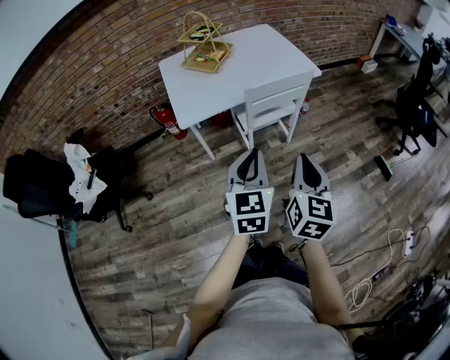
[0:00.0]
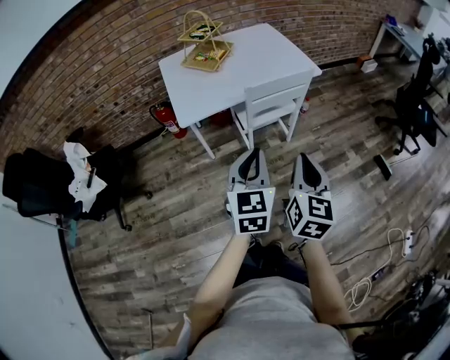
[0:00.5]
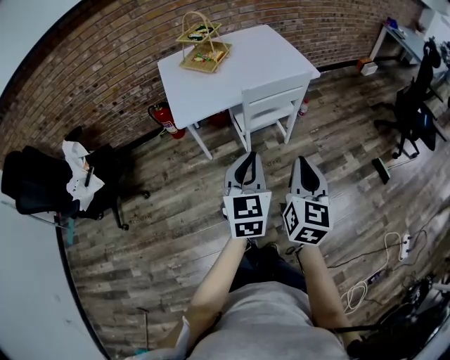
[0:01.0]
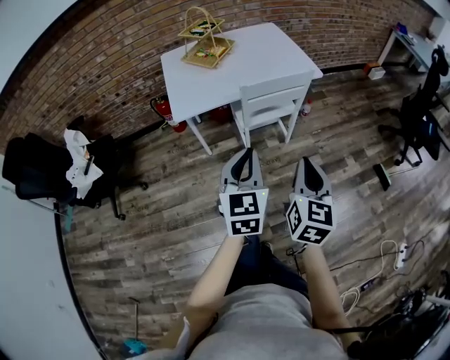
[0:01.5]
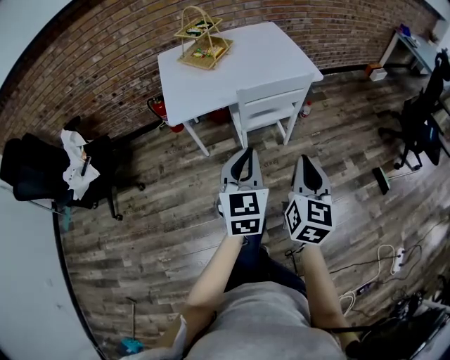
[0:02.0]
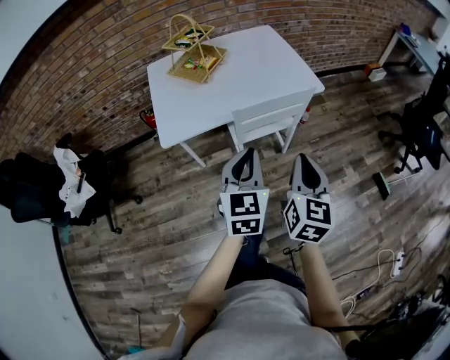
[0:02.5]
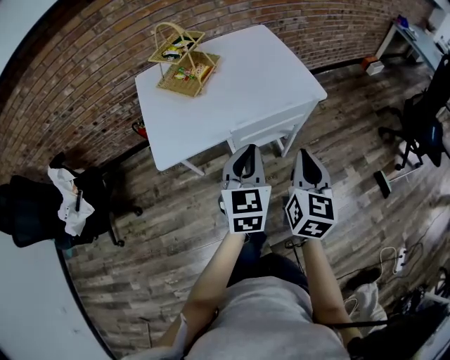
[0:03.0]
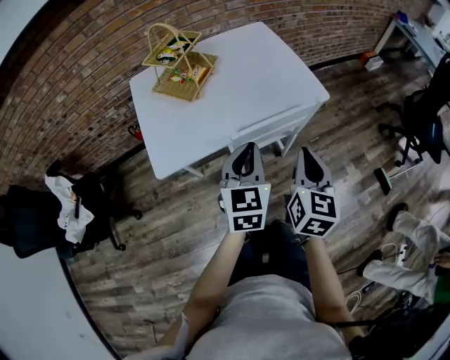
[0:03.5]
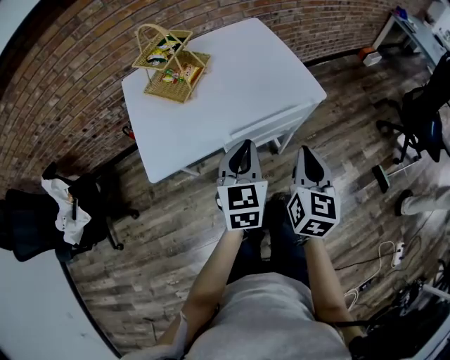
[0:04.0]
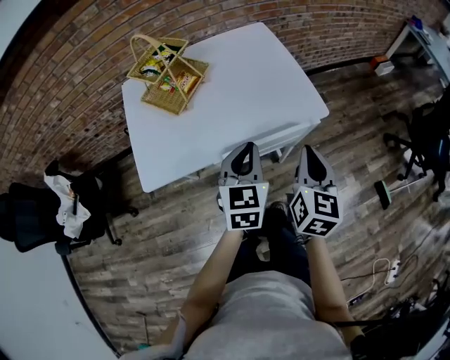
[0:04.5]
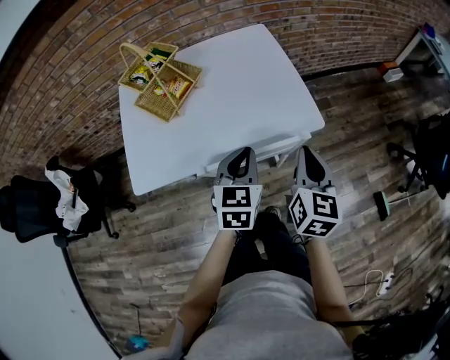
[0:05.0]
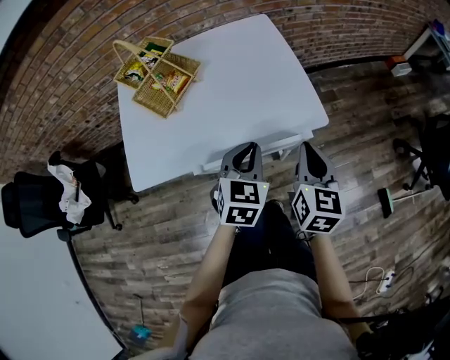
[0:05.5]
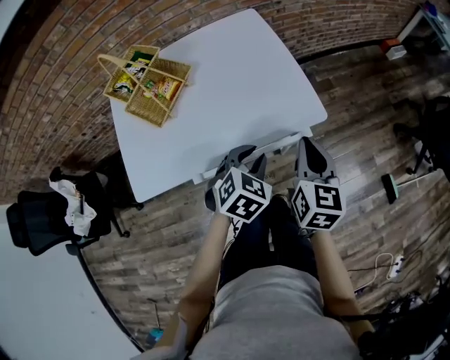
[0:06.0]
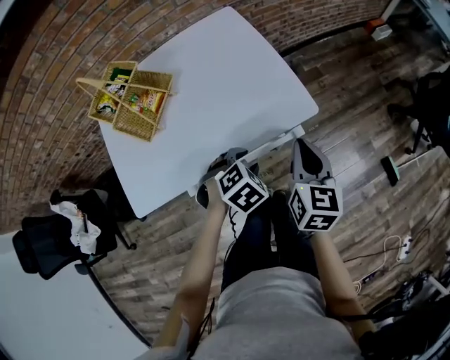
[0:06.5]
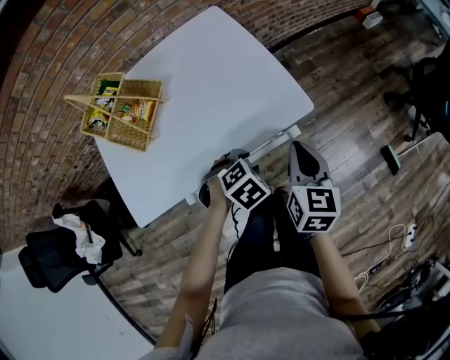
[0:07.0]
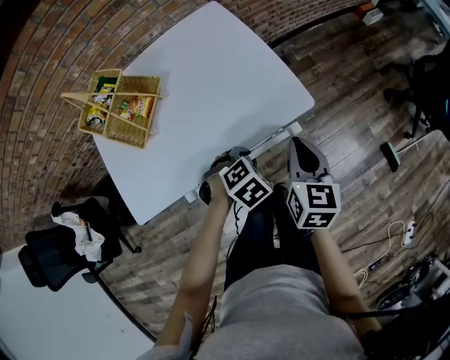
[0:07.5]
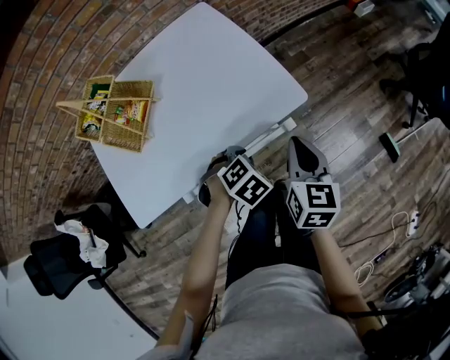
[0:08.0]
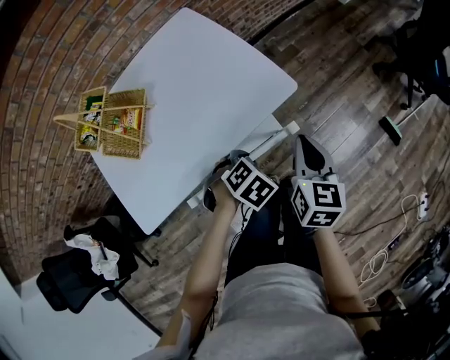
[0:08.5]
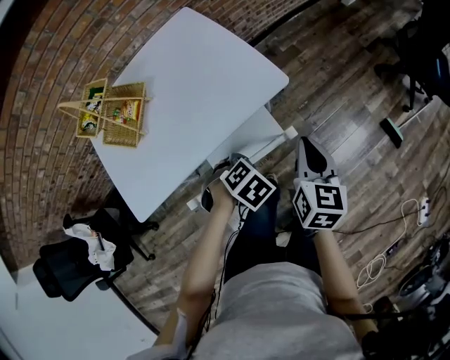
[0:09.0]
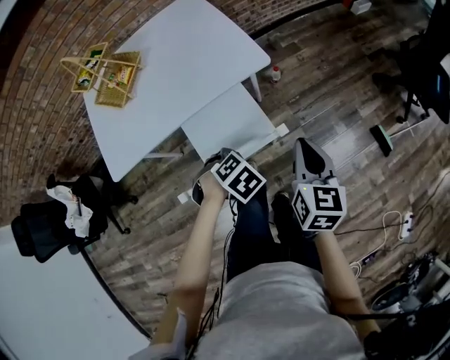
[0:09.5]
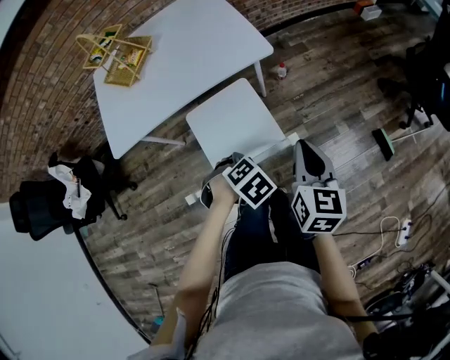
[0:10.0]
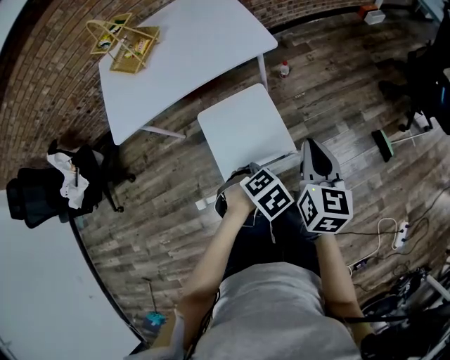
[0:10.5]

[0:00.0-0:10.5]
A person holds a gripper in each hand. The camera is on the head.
0:00.0 to 0:02.0: The left gripper moves about 5 cm. The right gripper shifts approximately 5 cm to the right.
0:02.0 to 0:04.0: Both grippers travel together forward, about 30 cm.
0:04.0 to 0:06.5: The right gripper is displaced forward and to the right by roughly 20 cm. Meanwhile the left gripper is displaced downward, forward and to the right by approximately 25 cm, angles its fingers downward, by some 50 degrees, and opens its fingers.
0:06.5 to 0:08.5: The left gripper closes its fingers. The right gripper shifts by roughly 5 cm.
0:08.5 to 0:10.5: The right gripper changes place by some 25 cm; the left gripper shifts by about 35 cm.

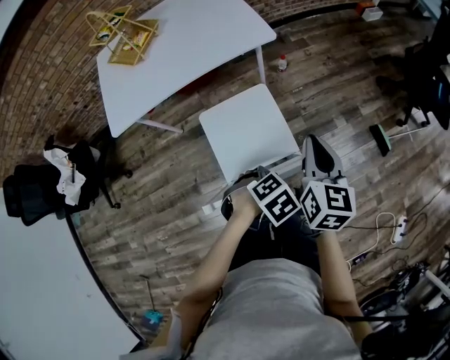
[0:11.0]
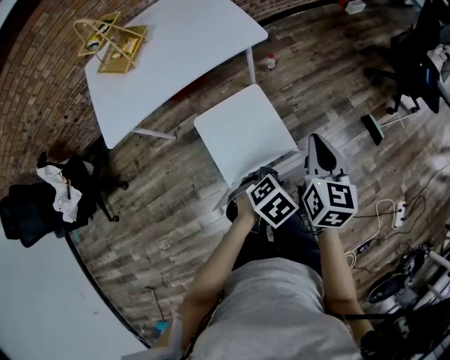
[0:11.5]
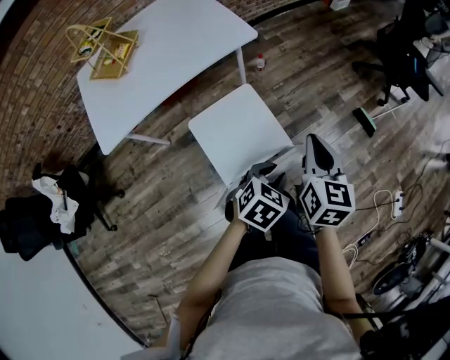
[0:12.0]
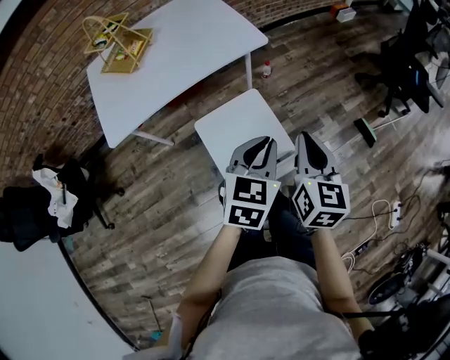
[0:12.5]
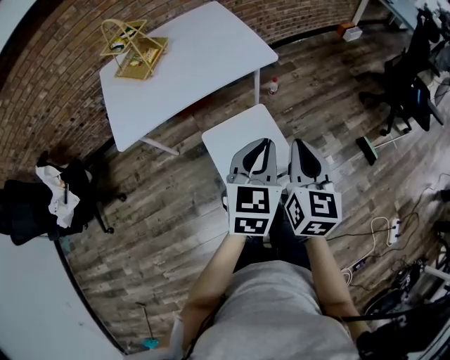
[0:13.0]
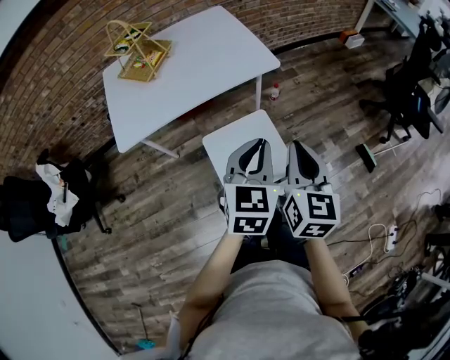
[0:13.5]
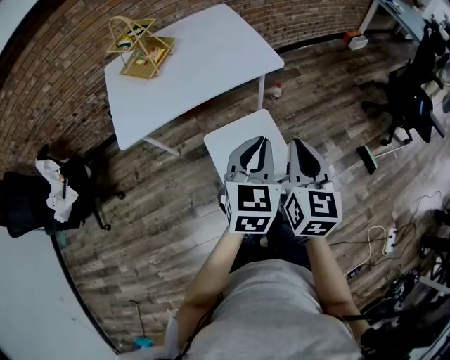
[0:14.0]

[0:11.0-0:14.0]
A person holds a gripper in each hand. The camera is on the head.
0:11.0 to 0:12.5: The left gripper is displaced upward by about 15 cm, and tilts its fingers roughly 50 degrees upward, while the right gripper changes place by roughly 10 cm.
0:12.5 to 0:14.0: The grippers both shift to the left by some 5 cm.

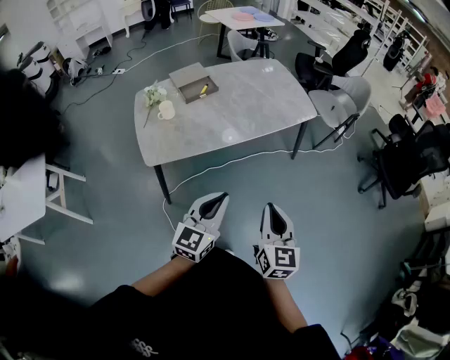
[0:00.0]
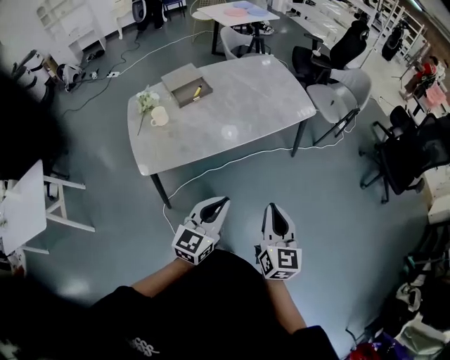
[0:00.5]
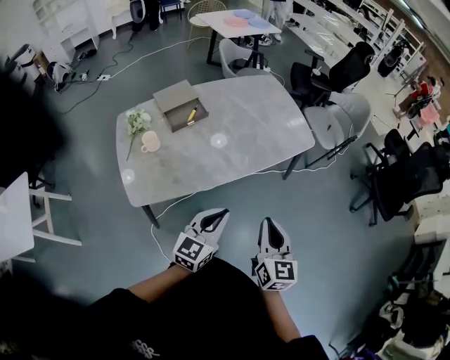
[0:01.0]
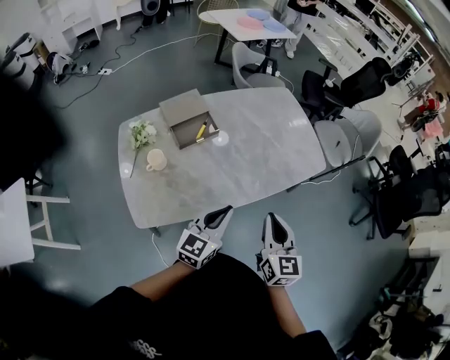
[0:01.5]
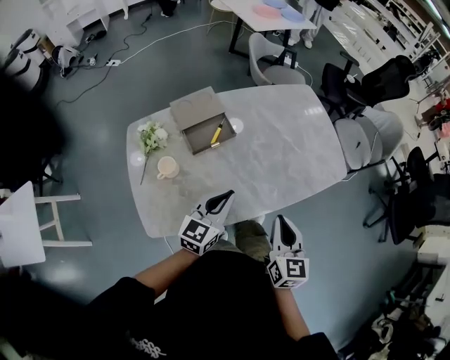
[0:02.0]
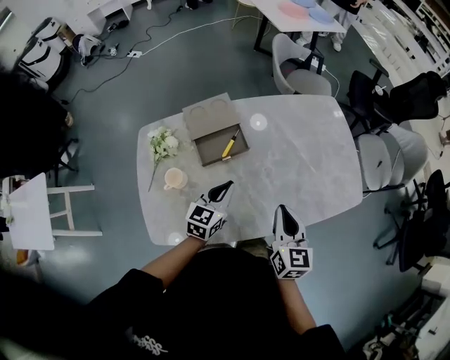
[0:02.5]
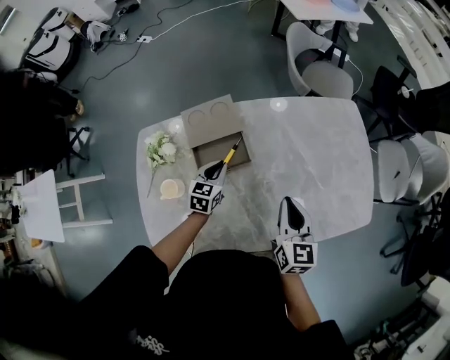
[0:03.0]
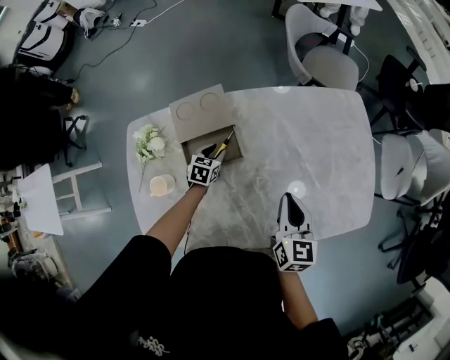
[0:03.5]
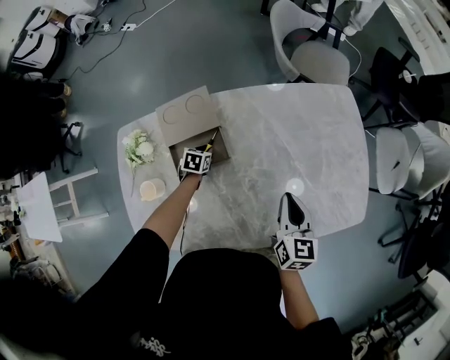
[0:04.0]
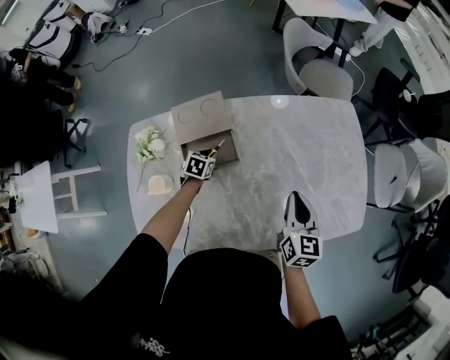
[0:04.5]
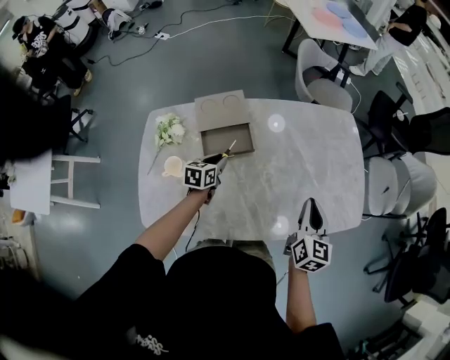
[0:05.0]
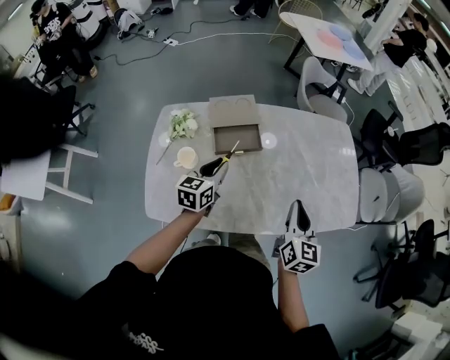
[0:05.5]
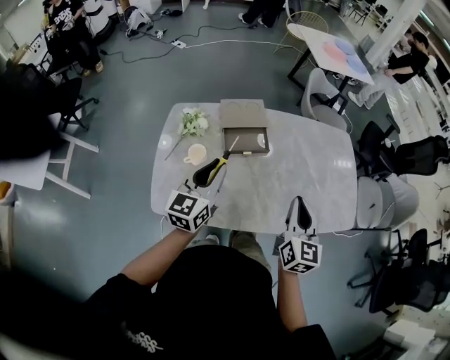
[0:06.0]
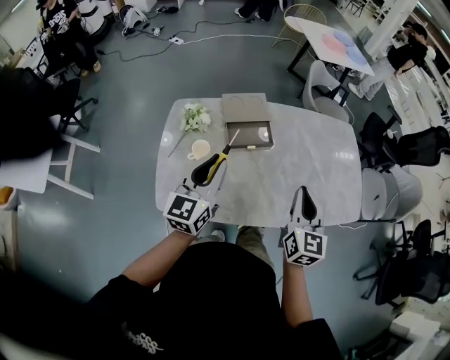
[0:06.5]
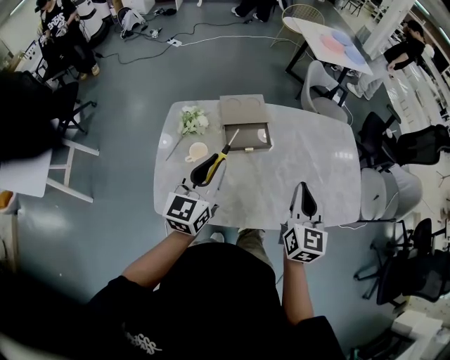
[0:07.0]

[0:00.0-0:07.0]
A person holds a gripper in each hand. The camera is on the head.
0:00.0 to 0:02.0: The pair of grippers is taken forward and to the left, some 50 cm.
0:02.0 to 0:03.5: The right gripper heads forward, covering about 35 cm. The left gripper travels forward and downward by about 50 cm, tilts its fingers about 40 degrees downward, and opens.
0:03.5 to 0:05.0: The right gripper moves backward, upward and to the right, some 10 cm. The left gripper moves upward and backward, approximately 15 cm, and turns by roughly 20 degrees.
0:05.0 to 0:07.0: The left gripper moves upward and backward, approximately 35 cm, and points its fingers some 40 degrees further upward; the right gripper goes approximately 20 cm to the left, backward and upward.

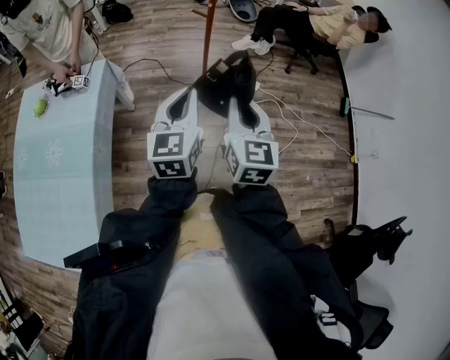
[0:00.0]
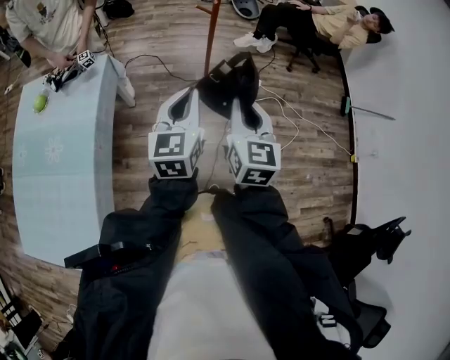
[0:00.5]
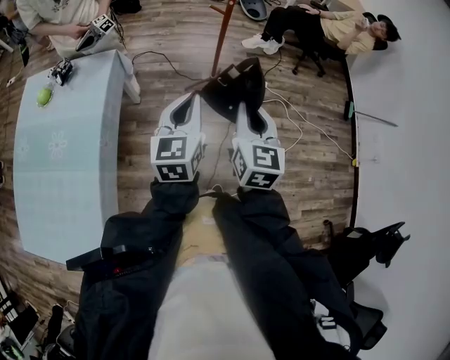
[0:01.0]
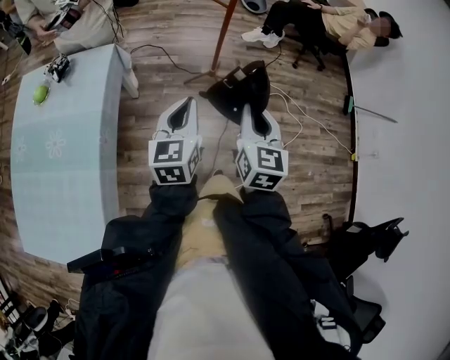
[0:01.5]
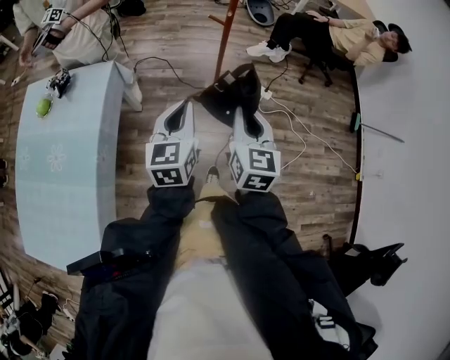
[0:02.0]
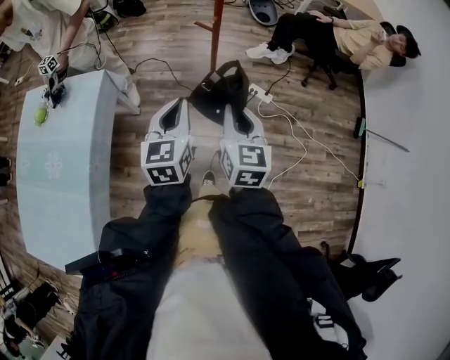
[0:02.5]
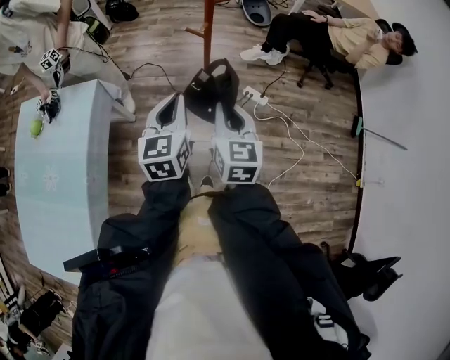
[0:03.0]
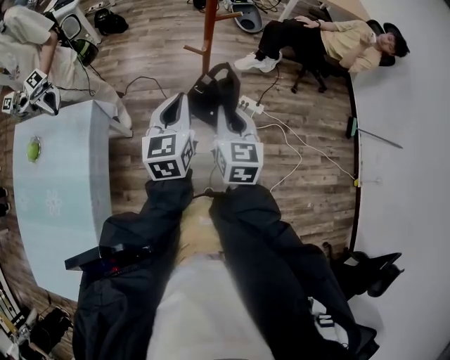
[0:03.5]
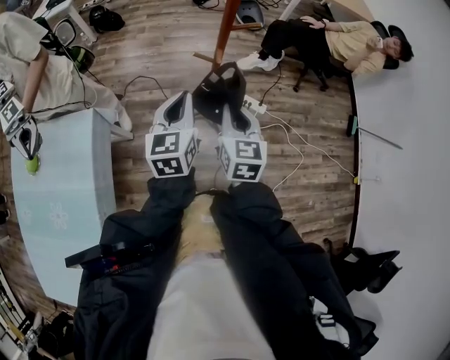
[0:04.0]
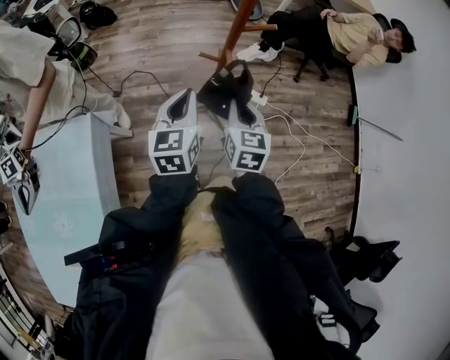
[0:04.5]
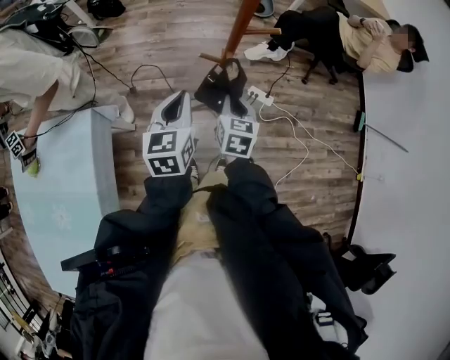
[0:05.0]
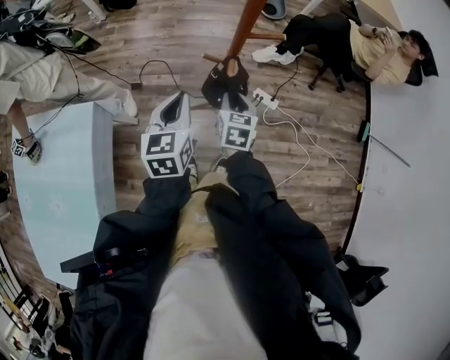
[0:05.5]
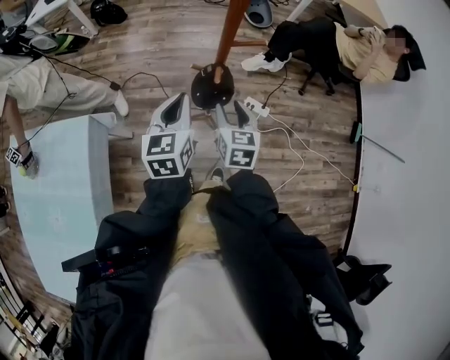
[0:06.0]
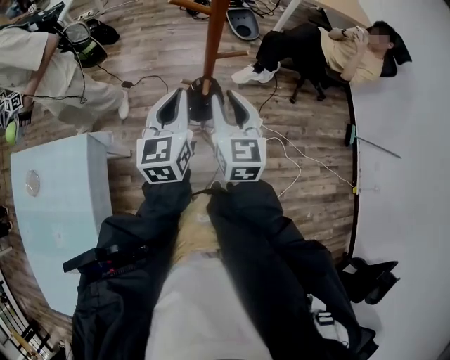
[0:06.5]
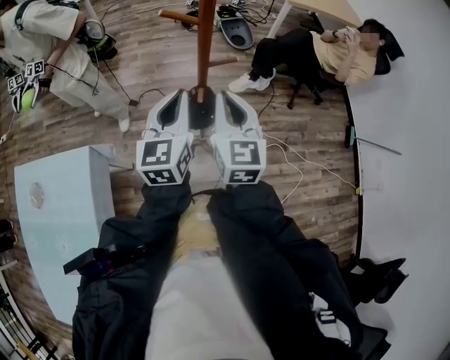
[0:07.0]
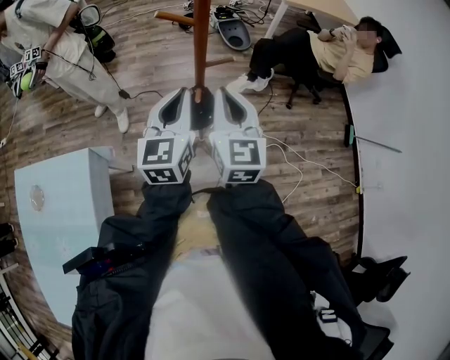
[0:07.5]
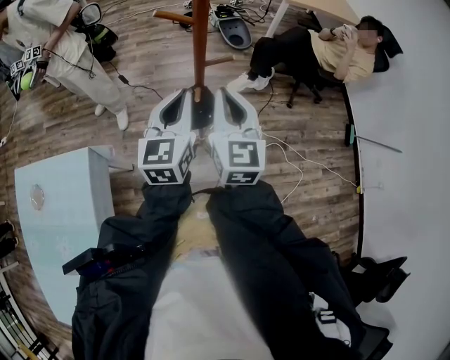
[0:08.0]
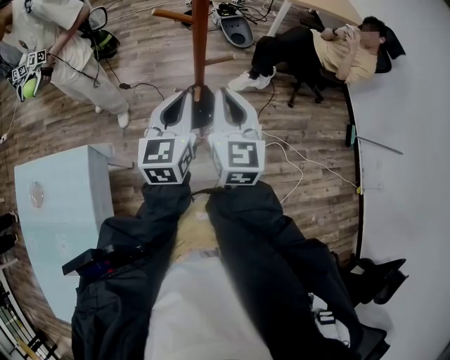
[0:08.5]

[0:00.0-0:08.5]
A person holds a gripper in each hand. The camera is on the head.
0:00.0 to 0:02.0: Both grippers travel together forward and downward, about 10 cm.
0:02.0 to 0:04.0: The two grippers go roughly 25 cm forward.
0:04.0 to 0:06.5: Both grippers travel together forward, roughly 10 cm. The right gripper travels downward and back again, approximately 15 cm each way, and opens its fingers.
0:06.5 to 0:08.5: The right gripper closes.
